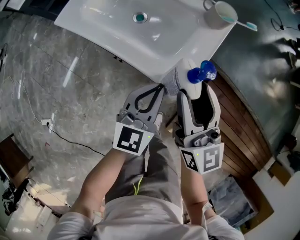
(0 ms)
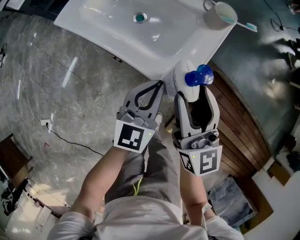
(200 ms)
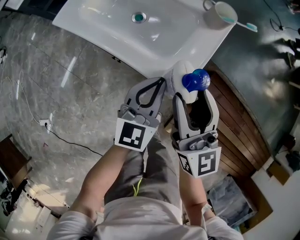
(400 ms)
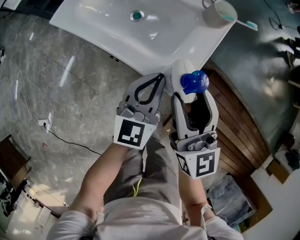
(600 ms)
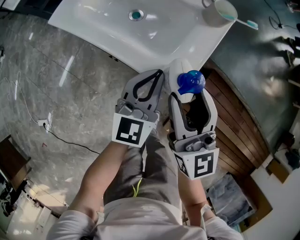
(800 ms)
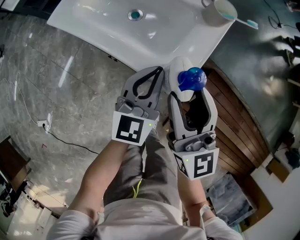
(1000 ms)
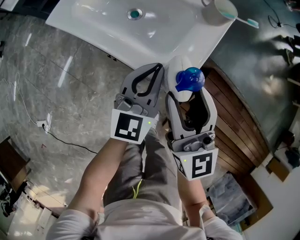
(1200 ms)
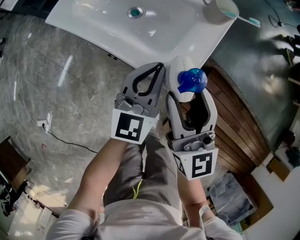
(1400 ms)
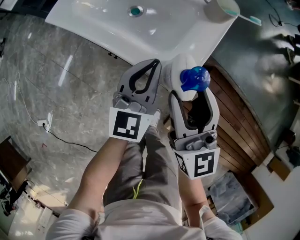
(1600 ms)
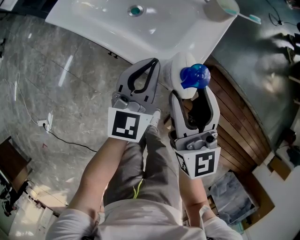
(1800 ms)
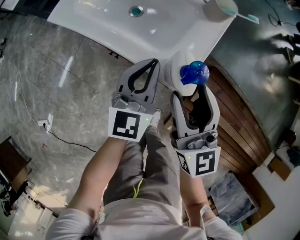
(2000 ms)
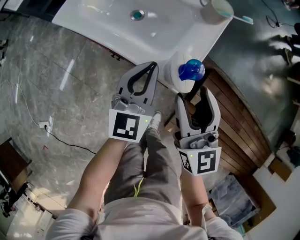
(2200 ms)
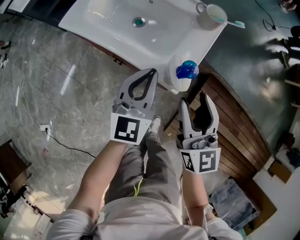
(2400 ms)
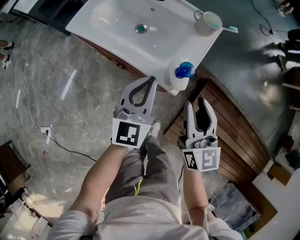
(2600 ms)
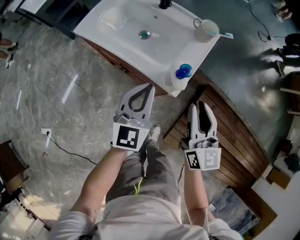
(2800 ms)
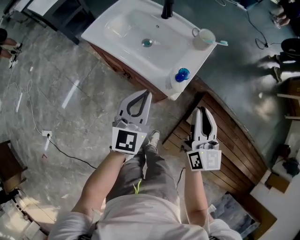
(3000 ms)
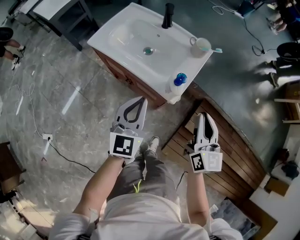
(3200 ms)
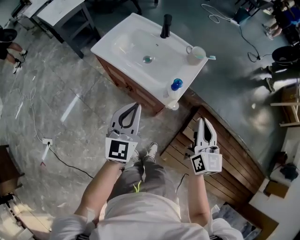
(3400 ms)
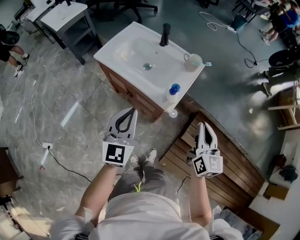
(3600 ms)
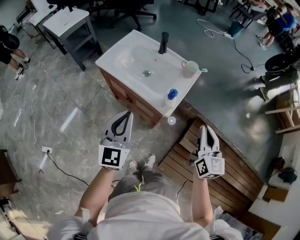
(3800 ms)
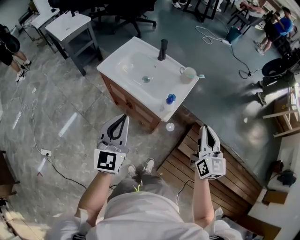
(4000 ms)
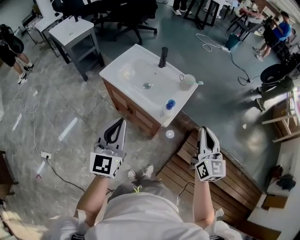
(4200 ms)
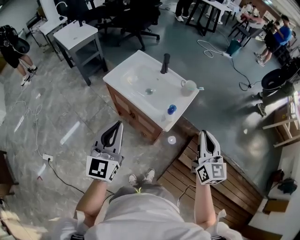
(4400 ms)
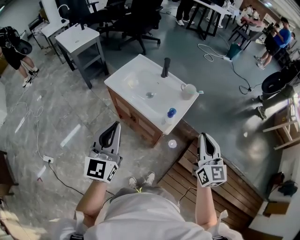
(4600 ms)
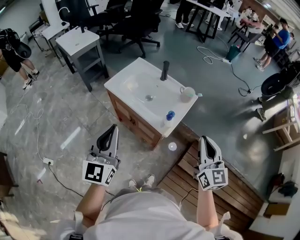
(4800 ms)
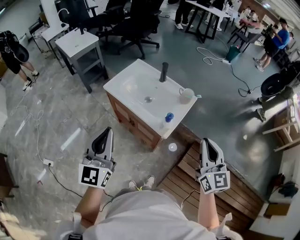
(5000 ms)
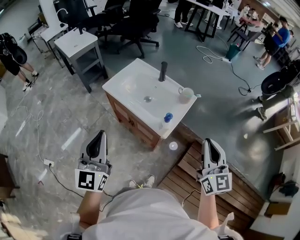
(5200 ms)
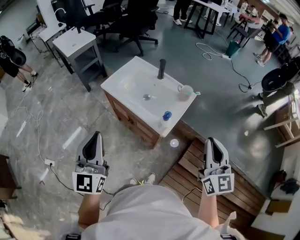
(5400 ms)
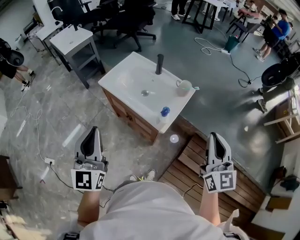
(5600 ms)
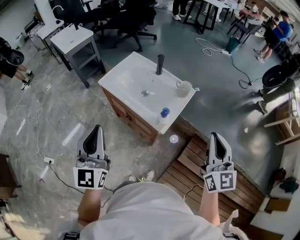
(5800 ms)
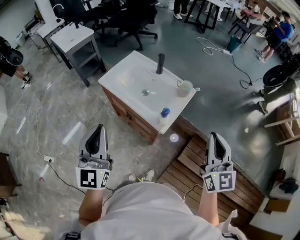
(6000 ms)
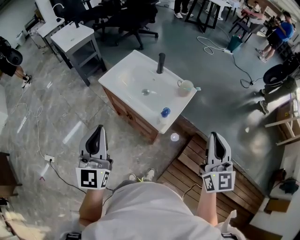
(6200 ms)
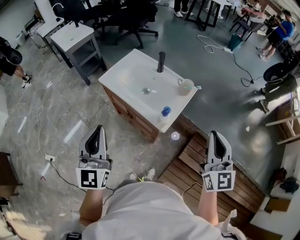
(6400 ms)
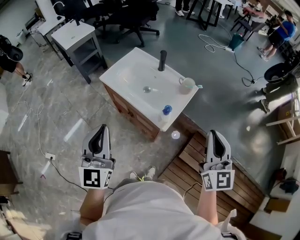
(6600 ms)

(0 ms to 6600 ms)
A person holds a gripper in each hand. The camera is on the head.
0 ms - 1600 ms: The left gripper changes place by some 5 cm.
1600 ms - 3200 ms: The left gripper travels upward and backward by about 20 cm. Meanwhile the right gripper heads upward, backward and to the right, covering some 15 cm, and closes up.
3200 ms - 5000 ms: The right gripper heads upward, covering about 15 cm, while the left gripper is displaced upward, backward and to the left by roughly 25 cm.
5000 ms - 6600 ms: There are only small adjustments of the grippers.

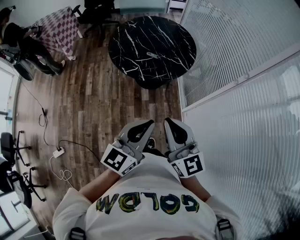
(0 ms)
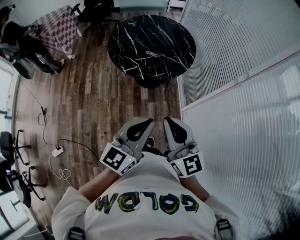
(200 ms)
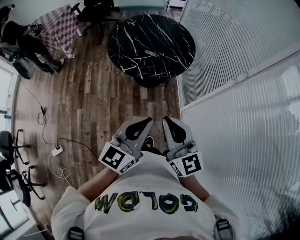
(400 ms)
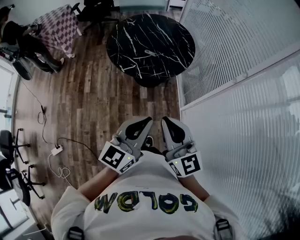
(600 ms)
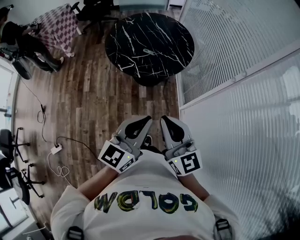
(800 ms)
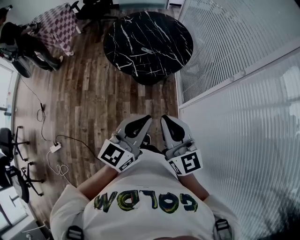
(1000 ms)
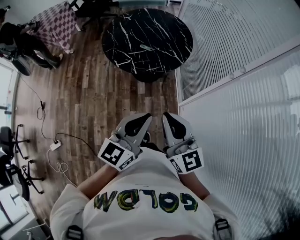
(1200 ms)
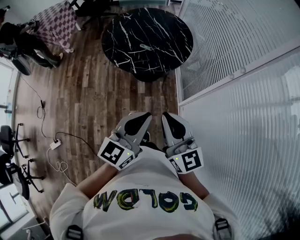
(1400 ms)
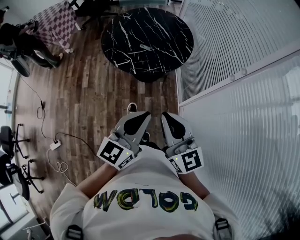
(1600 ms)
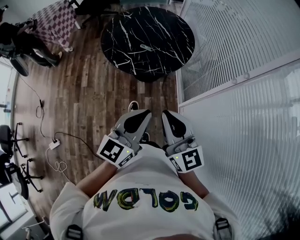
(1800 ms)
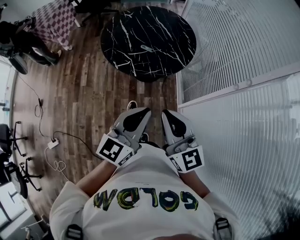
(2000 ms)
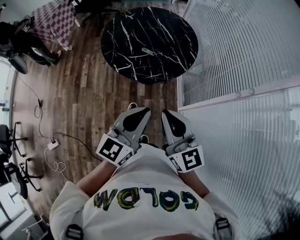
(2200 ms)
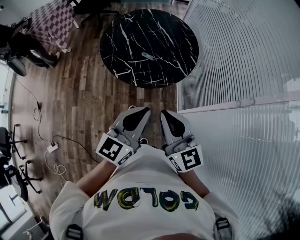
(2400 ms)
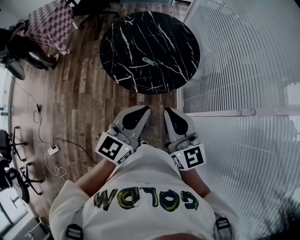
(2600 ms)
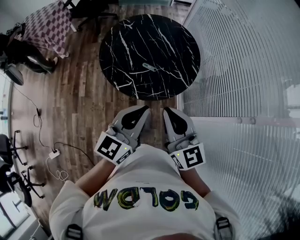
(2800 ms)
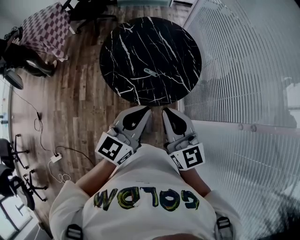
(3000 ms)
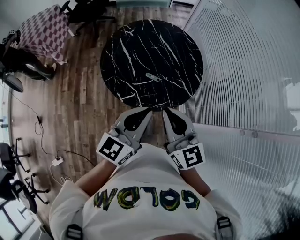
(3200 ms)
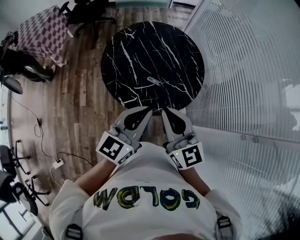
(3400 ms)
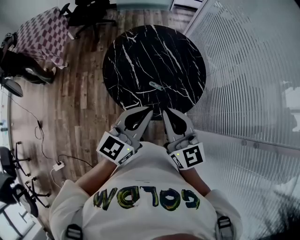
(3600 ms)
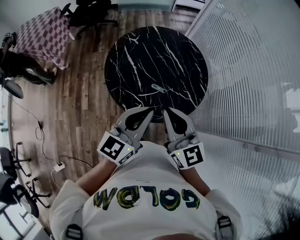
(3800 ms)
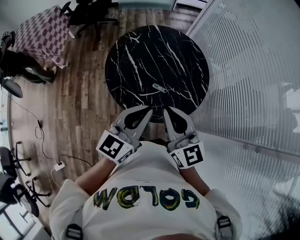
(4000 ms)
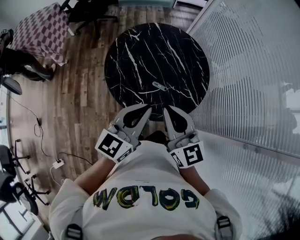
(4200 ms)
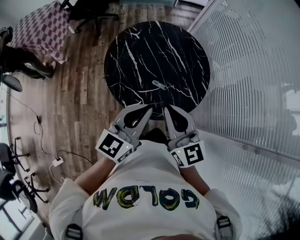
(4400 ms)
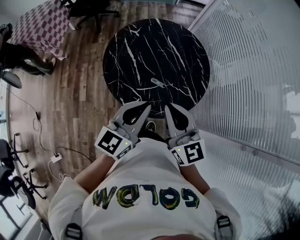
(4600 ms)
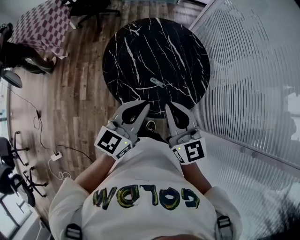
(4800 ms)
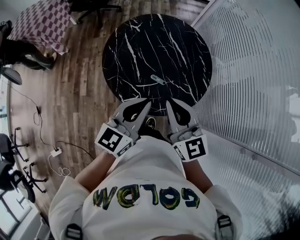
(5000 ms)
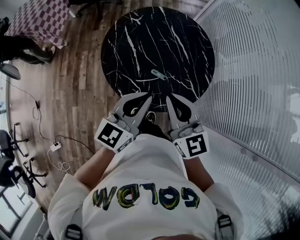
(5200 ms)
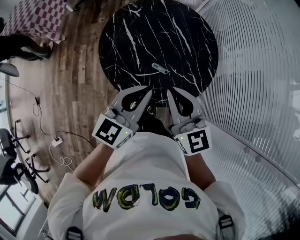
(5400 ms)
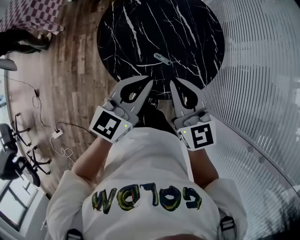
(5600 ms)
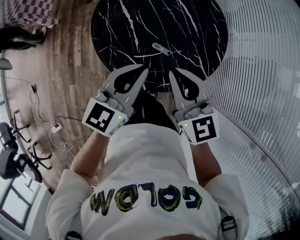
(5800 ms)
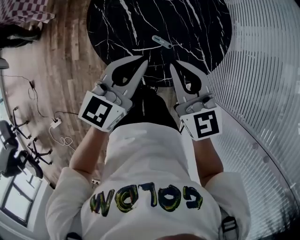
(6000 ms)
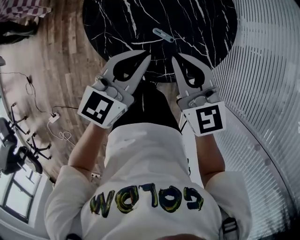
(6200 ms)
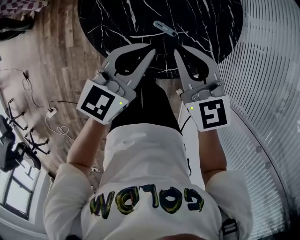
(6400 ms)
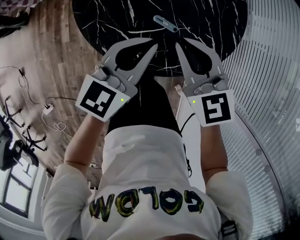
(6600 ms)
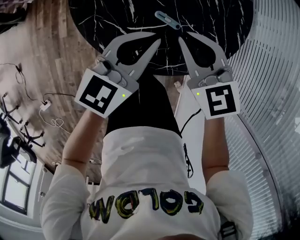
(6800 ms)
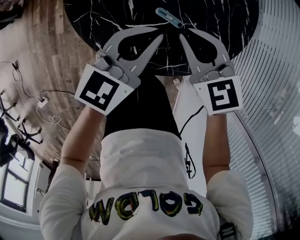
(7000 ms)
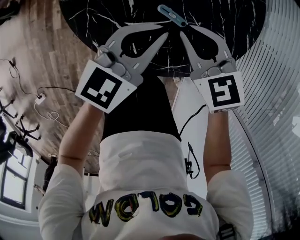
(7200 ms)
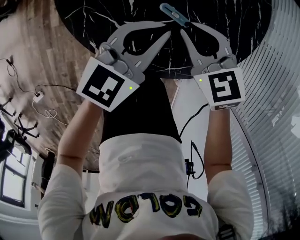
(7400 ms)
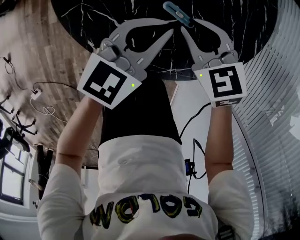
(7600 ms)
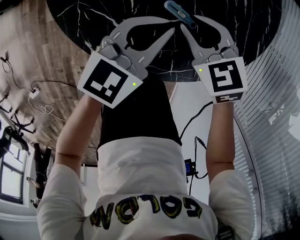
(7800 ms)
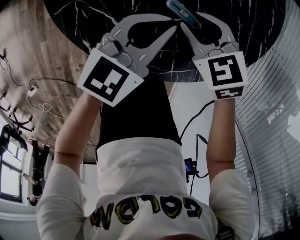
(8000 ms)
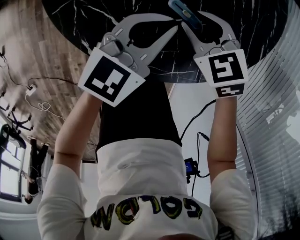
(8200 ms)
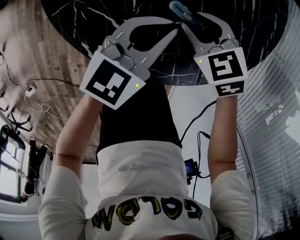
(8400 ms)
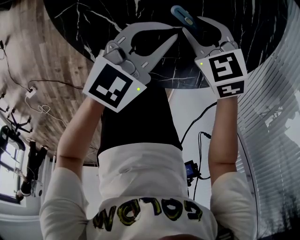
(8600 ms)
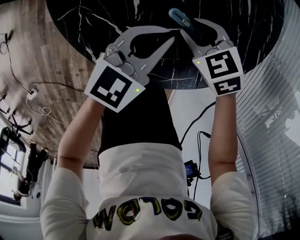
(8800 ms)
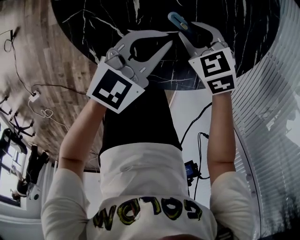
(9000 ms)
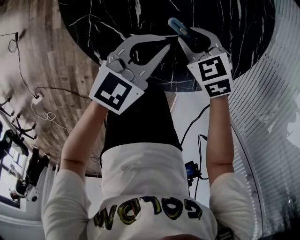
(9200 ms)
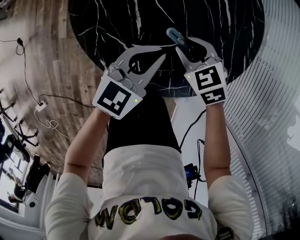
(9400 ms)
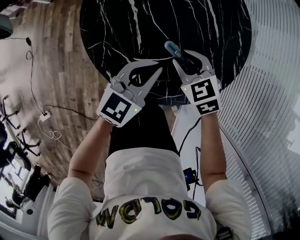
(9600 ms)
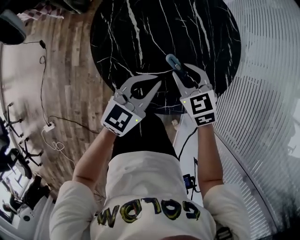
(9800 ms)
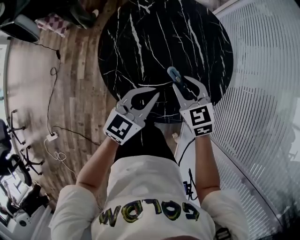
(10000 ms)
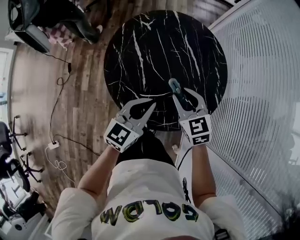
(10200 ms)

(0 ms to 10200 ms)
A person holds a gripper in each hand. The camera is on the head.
0 ms - 1400 ms: Both grippers travel together to the right, approximately 5 cm.
1400 ms - 3000 ms: The grippers both shift forward by about 30 cm.
3000 ms - 4400 ms: Both grippers travel together forward and to the left, about 15 cm.
4400 ms - 5800 ms: Both grippers move downward and forward, roughly 10 cm.
5800 ms - 7200 ms: Both grippers move downward, some 20 cm. The right gripper turns by some 30 degrees.
7200 ms - 8800 ms: The grippers both shift downward by some 10 cm. The right gripper rotates roughly 20 degrees, and opens its fingers.
8800 ms - 10200 ms: The two grippers go some 25 cm upward. The right gripper changes its angle by about 30 degrees.

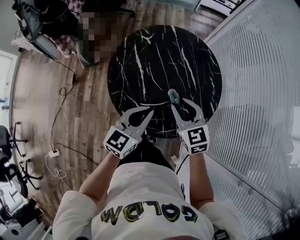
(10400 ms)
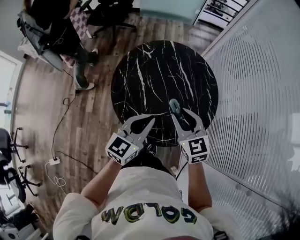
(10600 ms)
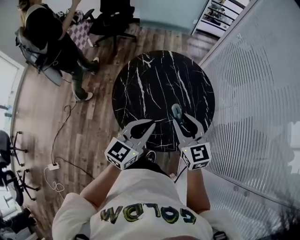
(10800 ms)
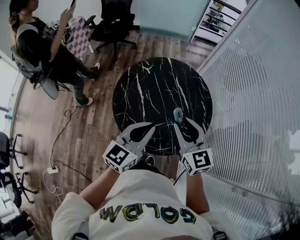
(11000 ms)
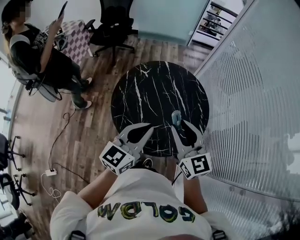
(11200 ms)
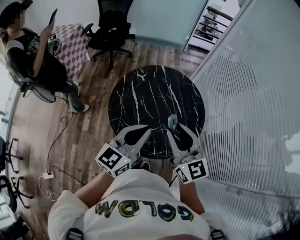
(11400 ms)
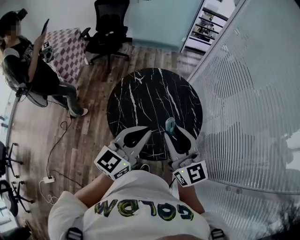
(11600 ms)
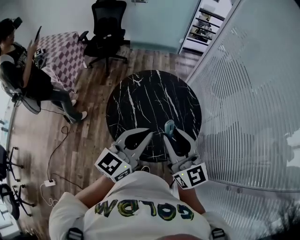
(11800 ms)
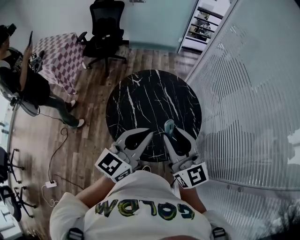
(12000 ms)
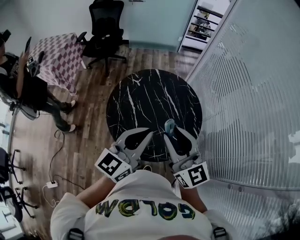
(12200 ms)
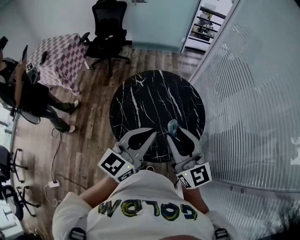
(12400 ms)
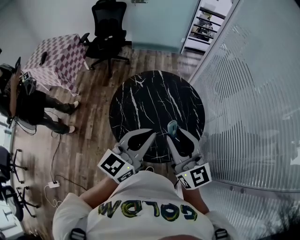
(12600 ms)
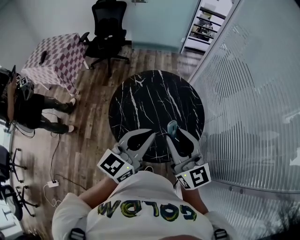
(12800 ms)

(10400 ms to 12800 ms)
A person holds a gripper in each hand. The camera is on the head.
10400 ms - 11600 ms: Both grippers move upward, some 20 cm. The right gripper tilts its fingers roughly 30 degrees upward.
11600 ms - 12800 ms: The grippers stay close to where they were, moving slightly.

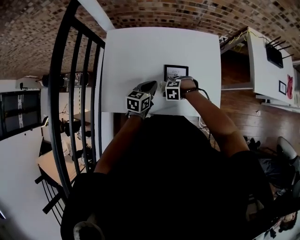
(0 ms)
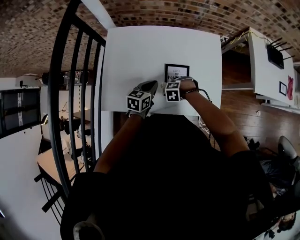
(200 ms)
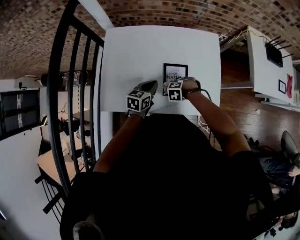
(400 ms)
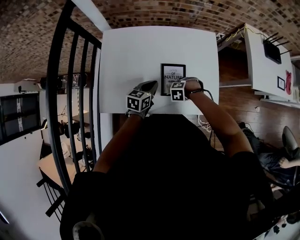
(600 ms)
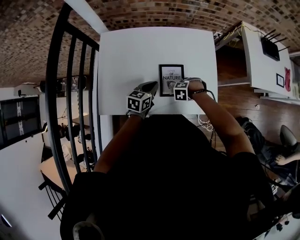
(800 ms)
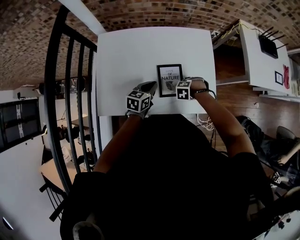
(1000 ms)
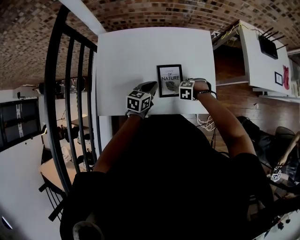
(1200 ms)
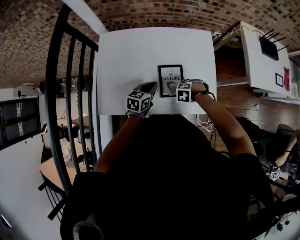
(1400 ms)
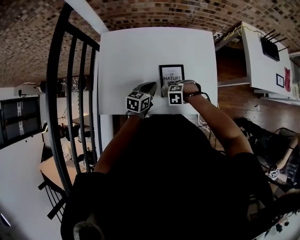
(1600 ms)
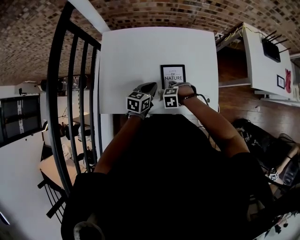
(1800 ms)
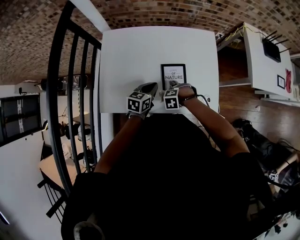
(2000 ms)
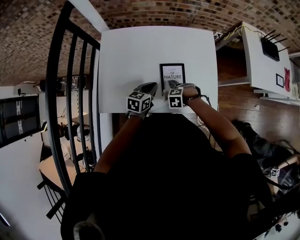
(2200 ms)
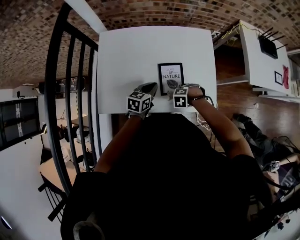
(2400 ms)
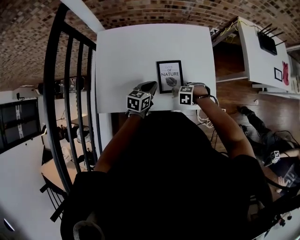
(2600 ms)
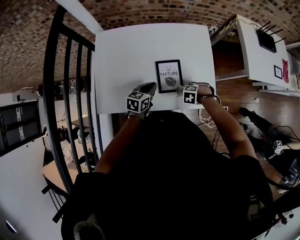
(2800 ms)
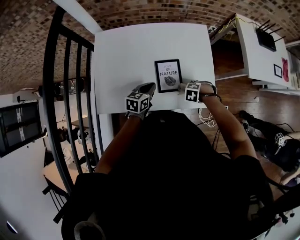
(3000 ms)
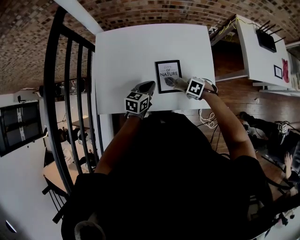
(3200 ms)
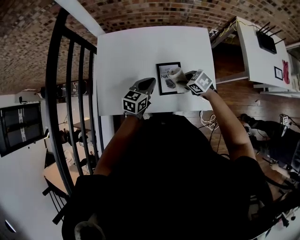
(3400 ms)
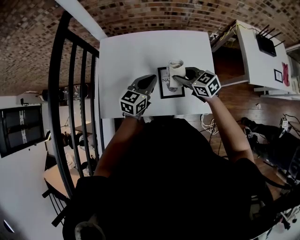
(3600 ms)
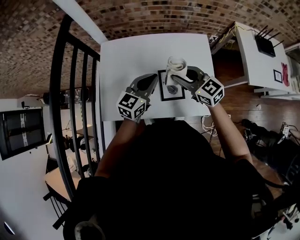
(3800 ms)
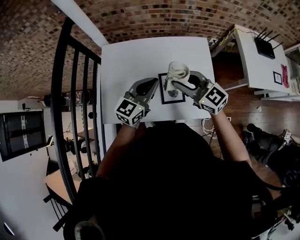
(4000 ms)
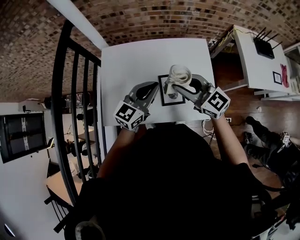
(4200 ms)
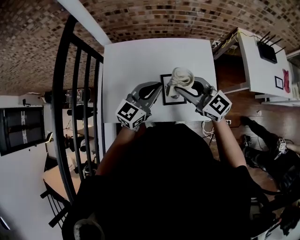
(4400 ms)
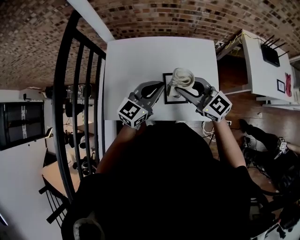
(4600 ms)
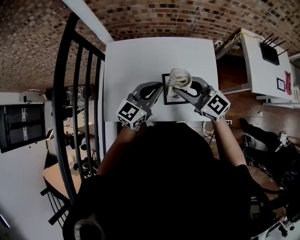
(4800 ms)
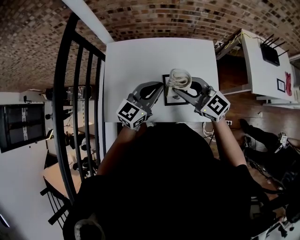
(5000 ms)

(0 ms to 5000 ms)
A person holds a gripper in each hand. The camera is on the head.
3400 ms - 5000 ms: The left gripper travels upward by about 15 cm, and changes its angle by about 30 degrees.
